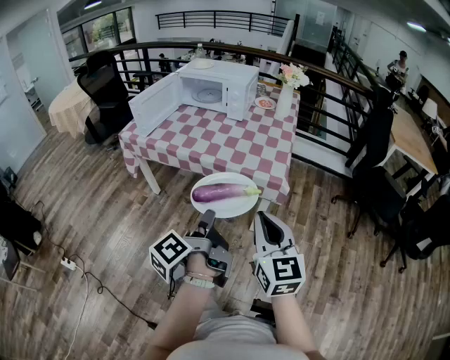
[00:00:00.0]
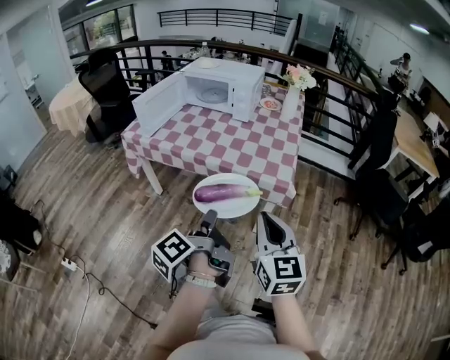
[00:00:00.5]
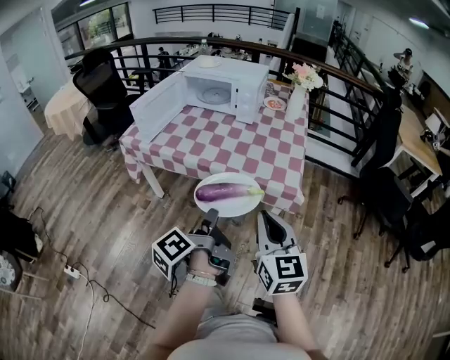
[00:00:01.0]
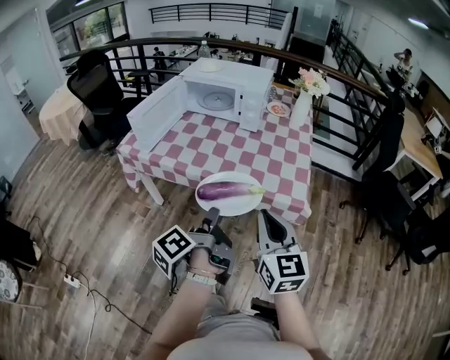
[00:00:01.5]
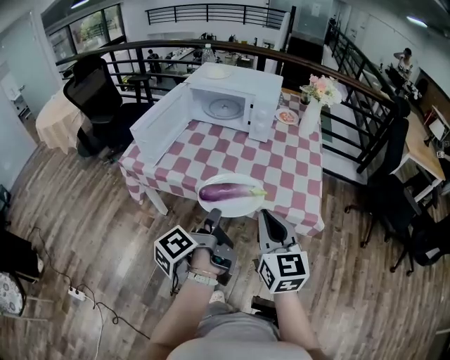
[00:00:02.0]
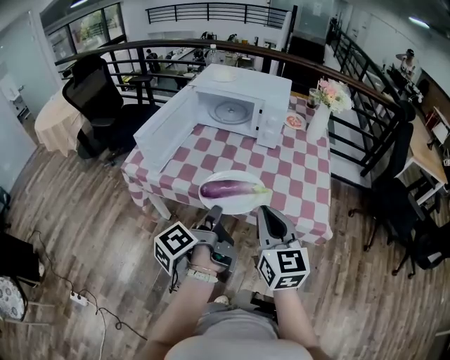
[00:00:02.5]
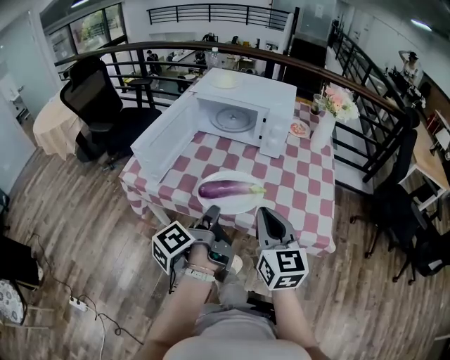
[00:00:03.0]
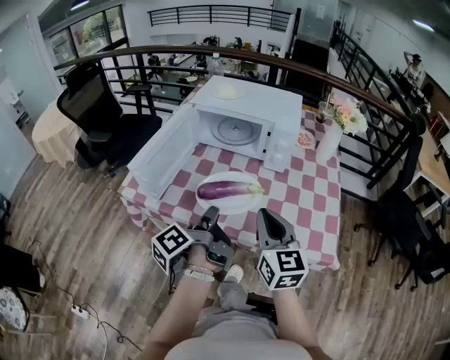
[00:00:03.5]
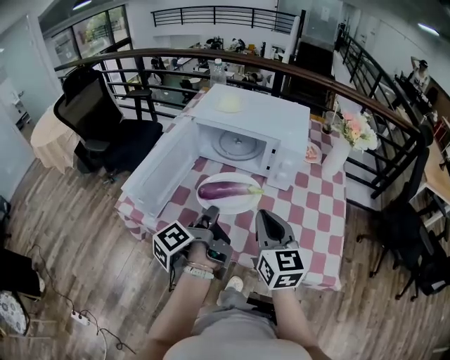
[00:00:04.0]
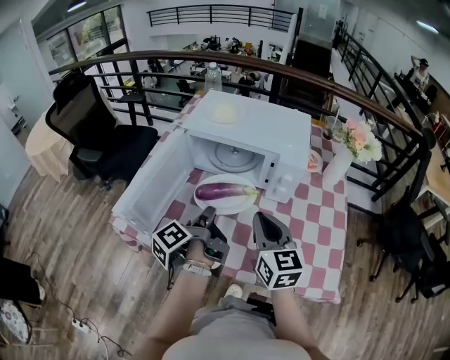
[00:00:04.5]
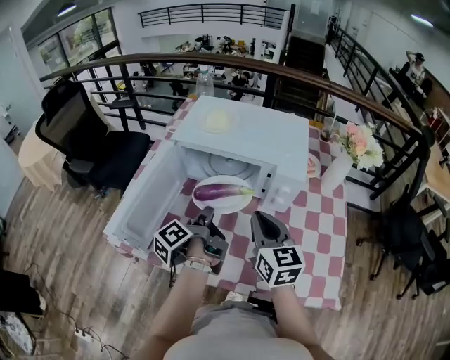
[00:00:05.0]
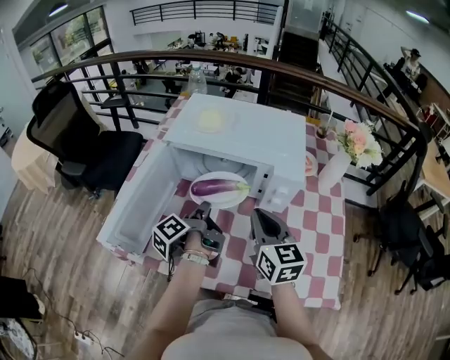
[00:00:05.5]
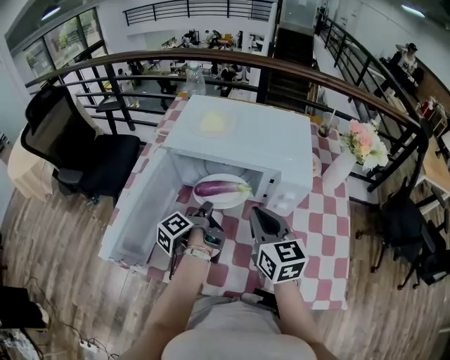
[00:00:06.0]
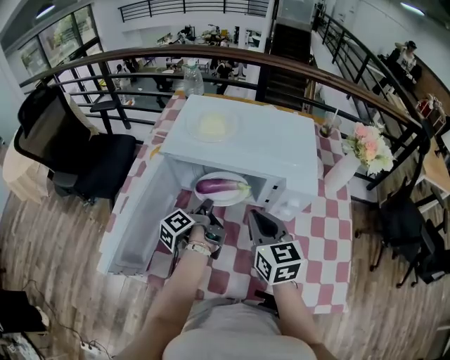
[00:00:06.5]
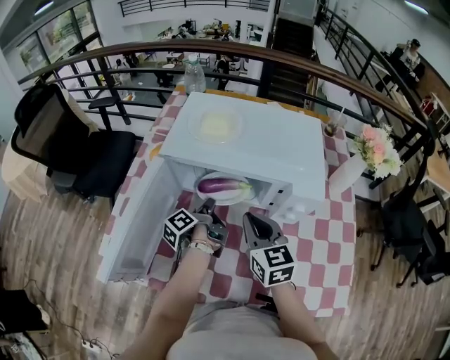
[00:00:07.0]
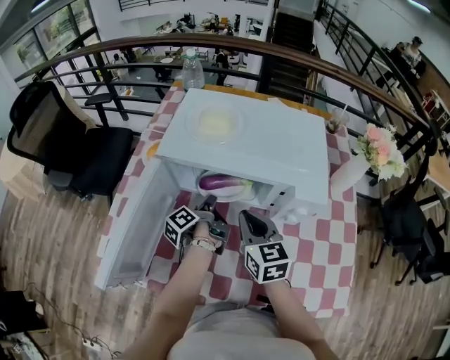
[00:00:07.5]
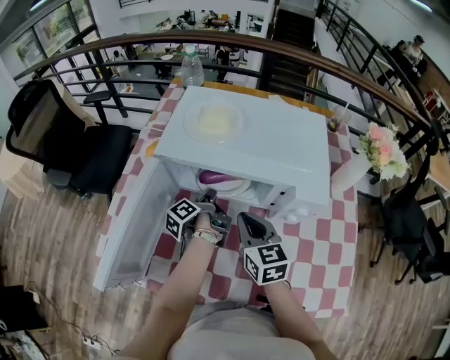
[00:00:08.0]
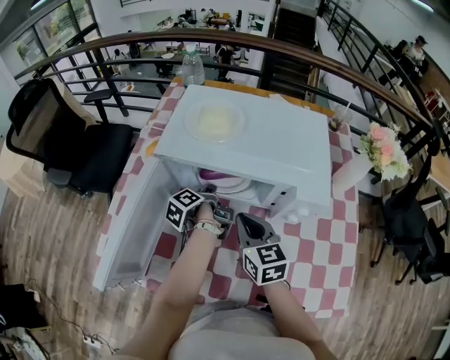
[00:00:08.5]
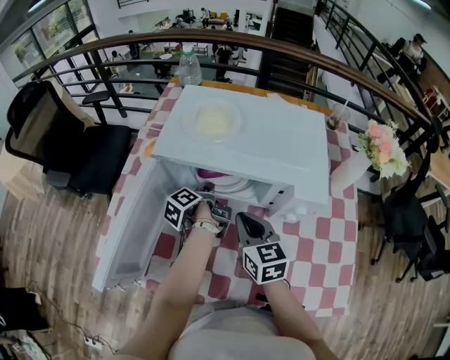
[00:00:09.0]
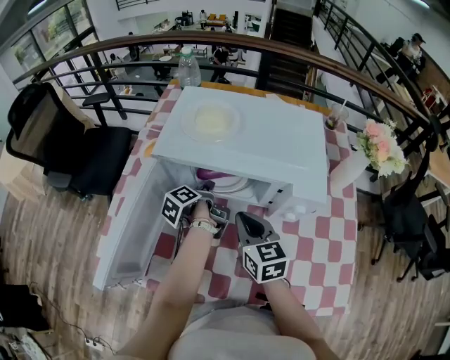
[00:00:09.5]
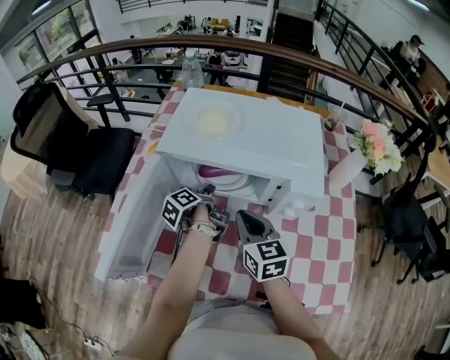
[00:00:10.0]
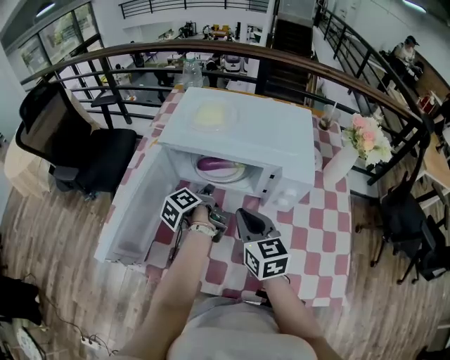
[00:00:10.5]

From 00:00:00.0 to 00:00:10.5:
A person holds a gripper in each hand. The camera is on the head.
From 00:00:00.0 to 00:00:02.0: The right gripper changes place by some 25 cm.
From 00:00:02.0 to 00:00:04.0: The right gripper changes place by approximately 25 cm.
From 00:00:04.0 to 00:00:06.5: The right gripper ends up roughly 20 cm from where it was.
From 00:00:06.5 to 00:00:08.5: The right gripper moves downward, some 5 cm.
From 00:00:08.5 to 00:00:10.5: The right gripper changes place by about 5 cm.

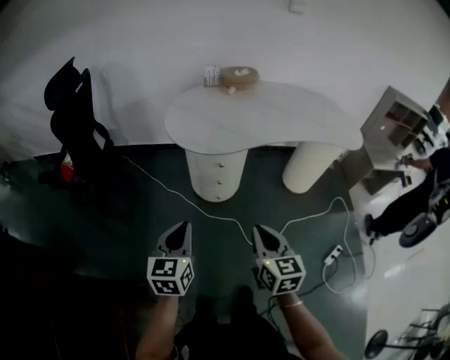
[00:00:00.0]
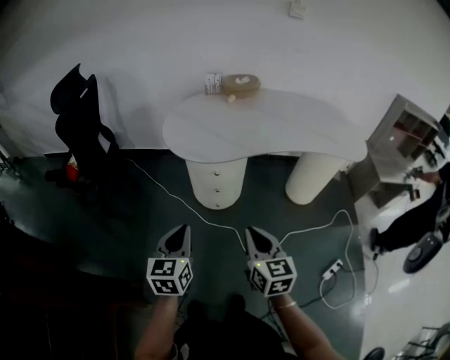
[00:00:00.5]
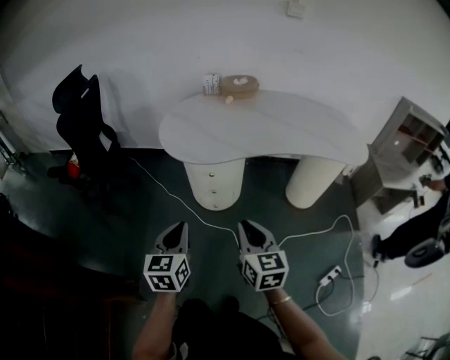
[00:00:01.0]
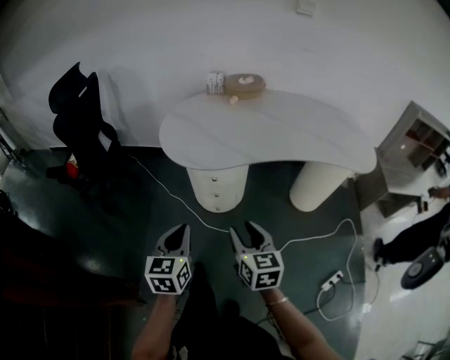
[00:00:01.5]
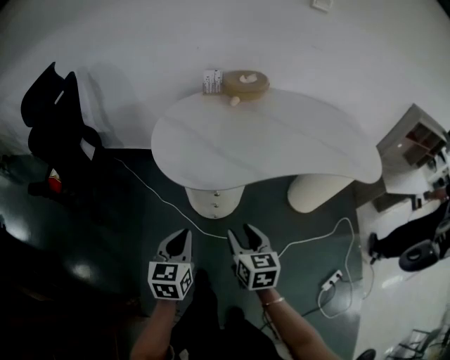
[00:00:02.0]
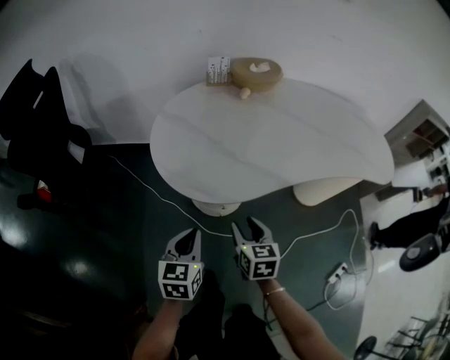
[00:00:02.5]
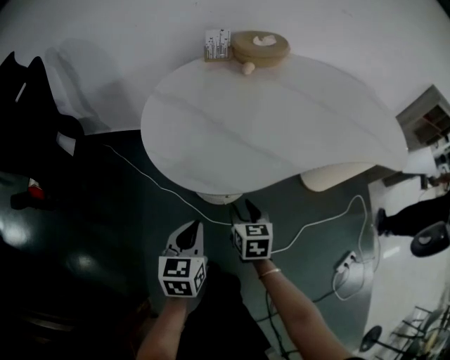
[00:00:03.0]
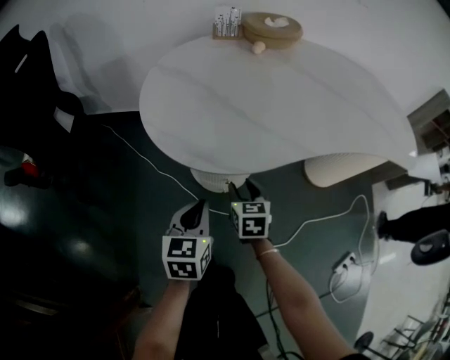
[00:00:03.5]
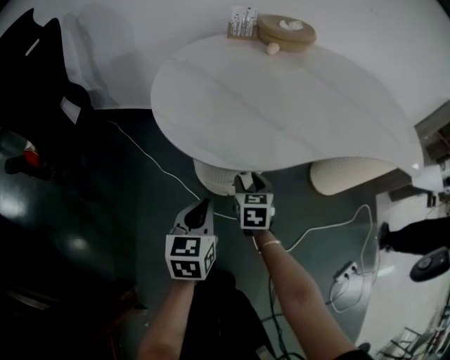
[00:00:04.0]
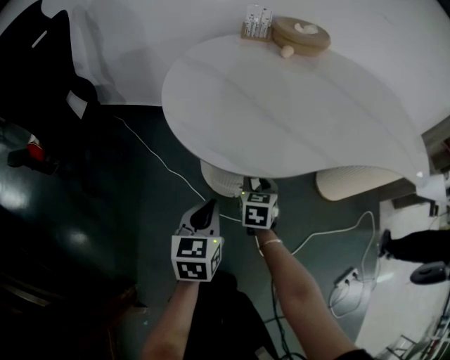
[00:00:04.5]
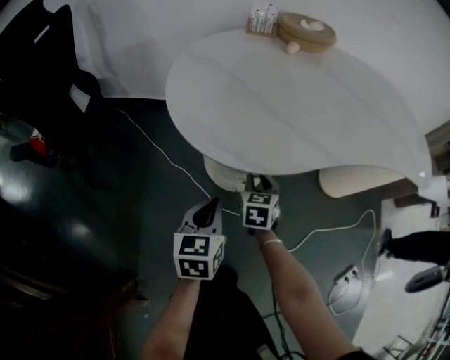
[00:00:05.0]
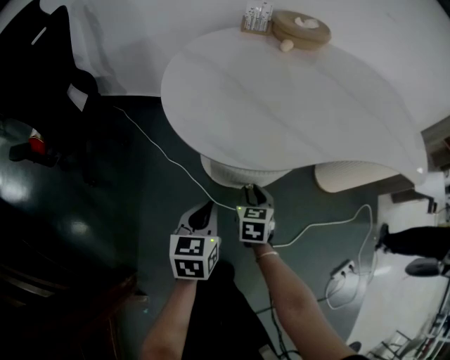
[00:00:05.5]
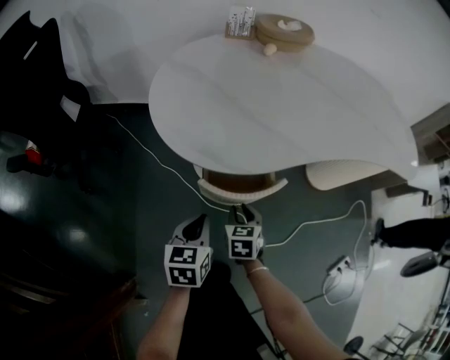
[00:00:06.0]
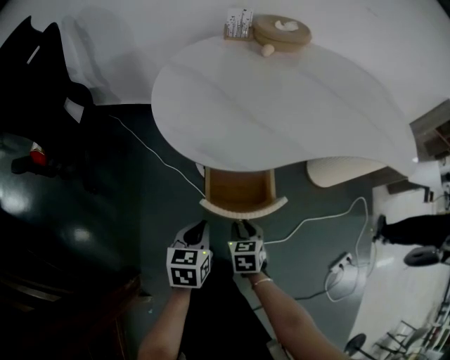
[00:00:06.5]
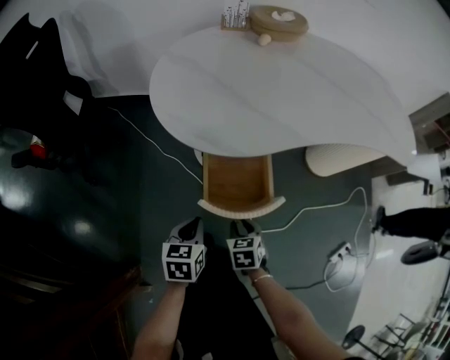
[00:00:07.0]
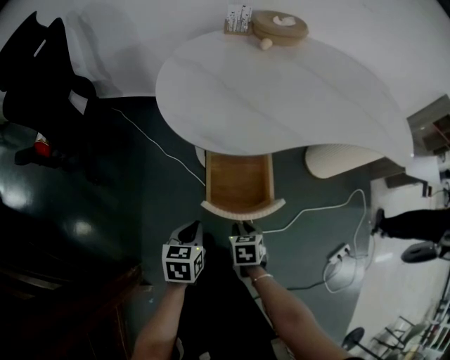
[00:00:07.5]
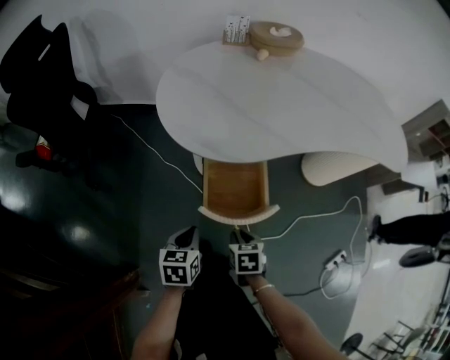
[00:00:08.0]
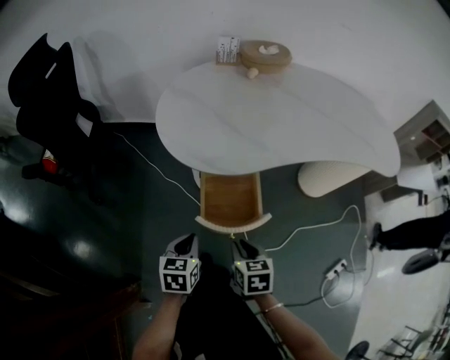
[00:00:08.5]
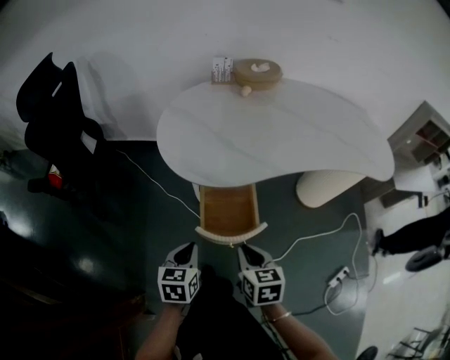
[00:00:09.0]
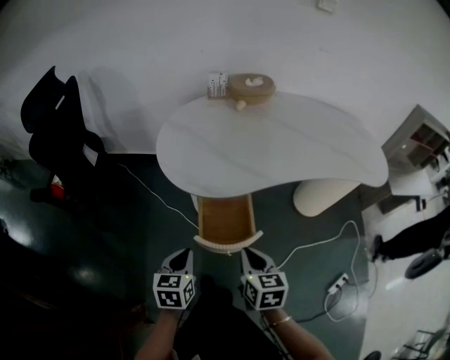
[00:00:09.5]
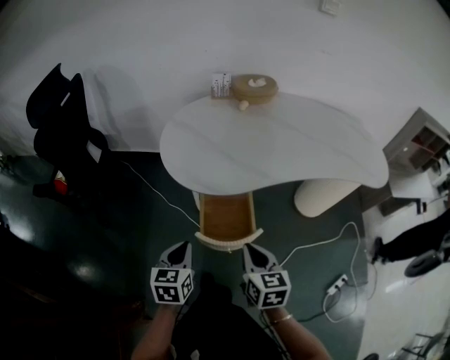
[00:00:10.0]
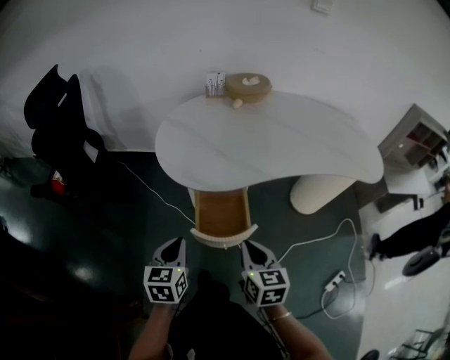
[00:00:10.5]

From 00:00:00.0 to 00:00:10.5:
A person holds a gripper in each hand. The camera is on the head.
From 00:00:00.0 to 00:00:02.0: Both grippers travel together forward, approximately 20 cm. The right gripper opens up.
From 00:00:02.0 to 00:00:04.0: Both grippers travel together downward and forward, approximately 25 cm.
From 00:00:04.0 to 00:00:06.5: The left gripper goes roughly 10 cm backward, while the right gripper moves backward, about 15 cm.
From 00:00:06.5 to 00:00:08.5: The left gripper goes some 5 cm backward; the right gripper is displaced upward and backward by about 15 cm.
From 00:00:08.5 to 00:00:10.5: Both grippers travel together upward, approximately 10 cm. The right gripper changes its angle by some 20 degrees.

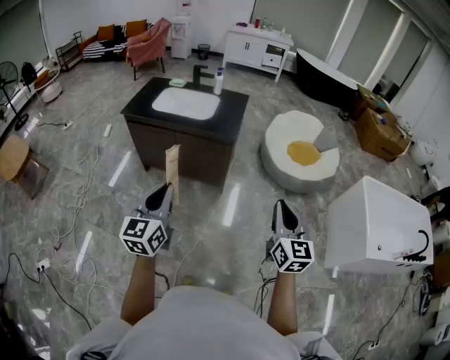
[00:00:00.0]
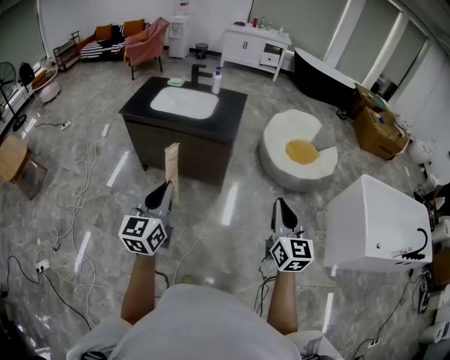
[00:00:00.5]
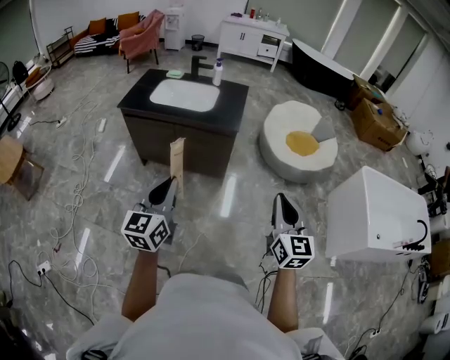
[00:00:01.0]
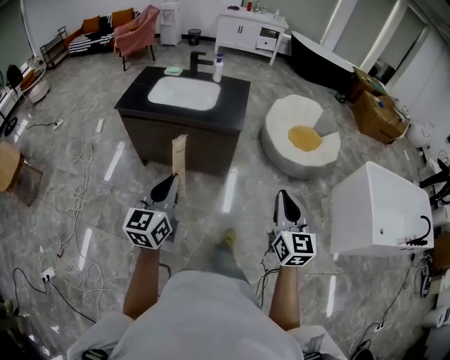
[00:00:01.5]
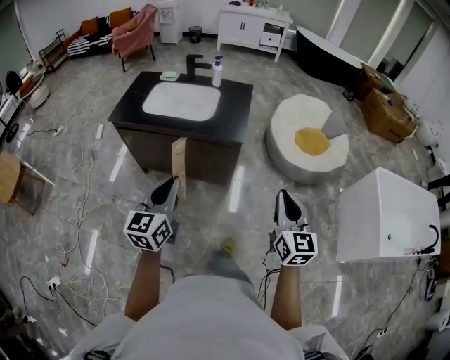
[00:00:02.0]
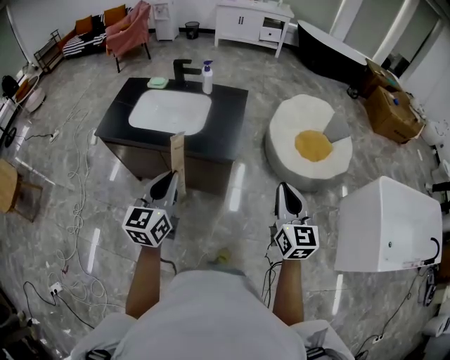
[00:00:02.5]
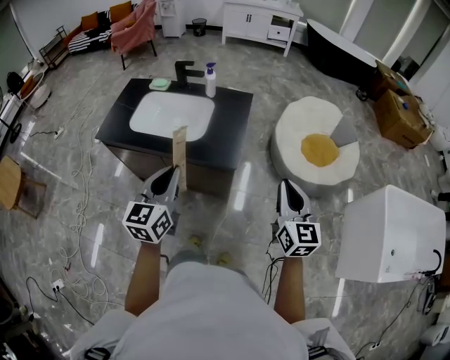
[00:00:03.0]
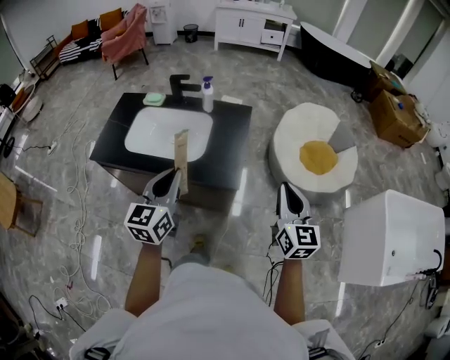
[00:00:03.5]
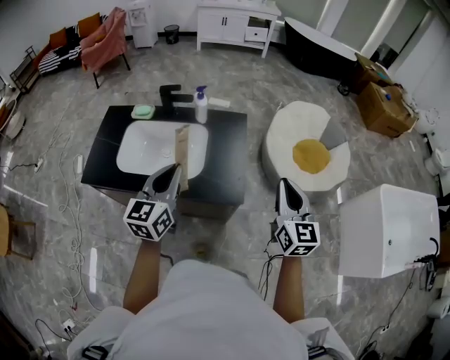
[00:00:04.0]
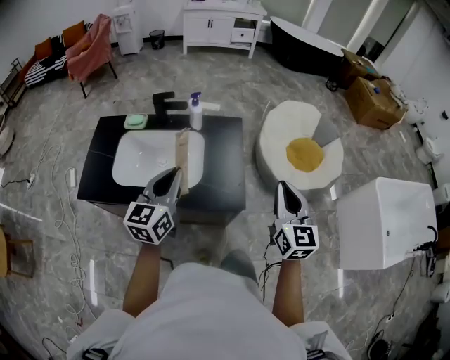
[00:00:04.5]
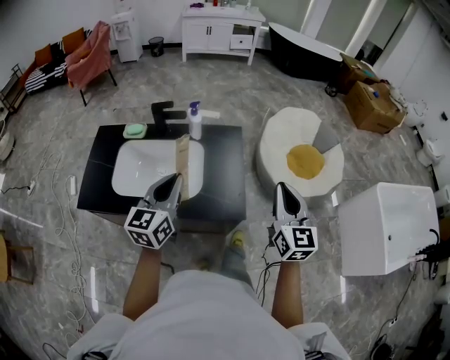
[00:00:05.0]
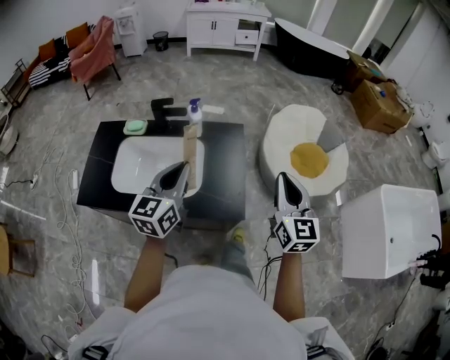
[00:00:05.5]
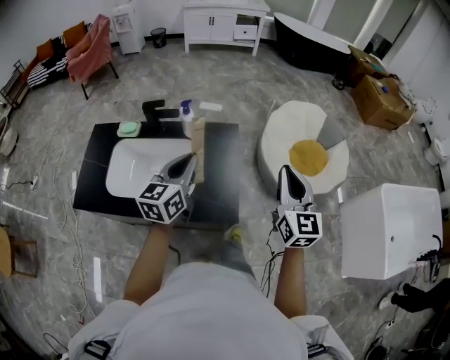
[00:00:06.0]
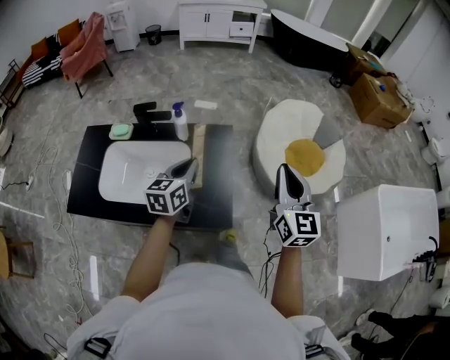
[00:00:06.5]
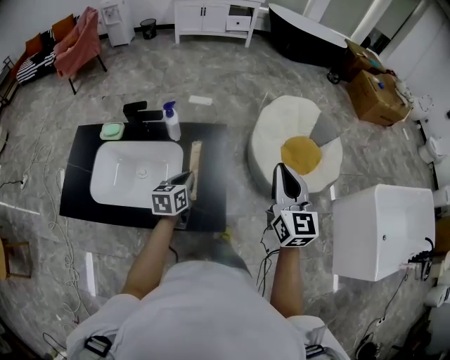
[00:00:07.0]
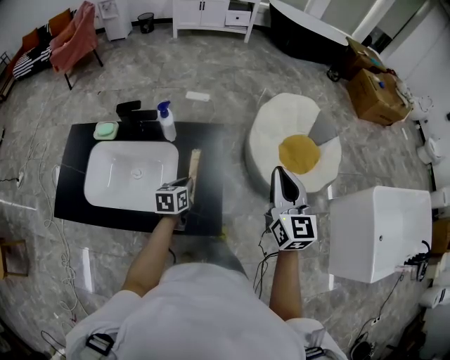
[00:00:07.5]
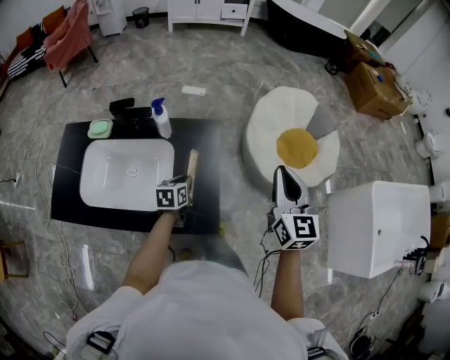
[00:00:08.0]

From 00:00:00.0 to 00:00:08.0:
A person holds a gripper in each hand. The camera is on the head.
From 00:00:00.0 to 00:00:02.0: The grippers both shift forward by roughly 20 cm.
From 00:00:02.0 to 00:00:04.0: The pair of grippers is taken forward, about 50 cm.
From 00:00:04.0 to 00:00:06.0: The grippers both shift forward by approximately 15 cm.
From 00:00:06.0 to 00:00:08.0: The right gripper travels forward by roughly 10 cm. Meanwhile the left gripper goes approximately 30 cm downward and forward, and tilts its fingers approximately 30 degrees downward.
